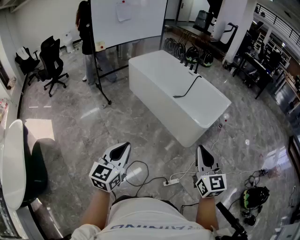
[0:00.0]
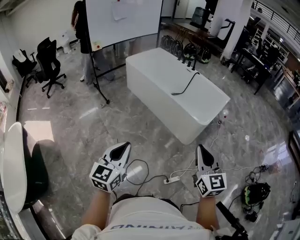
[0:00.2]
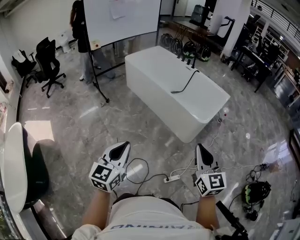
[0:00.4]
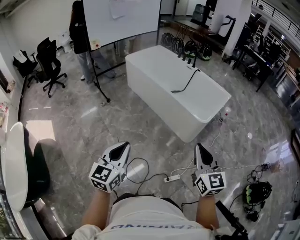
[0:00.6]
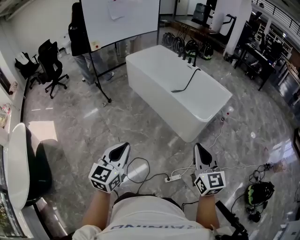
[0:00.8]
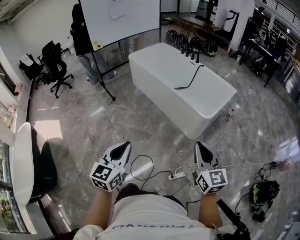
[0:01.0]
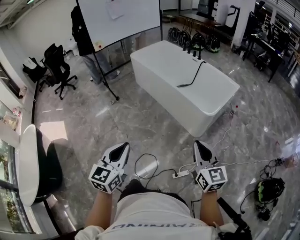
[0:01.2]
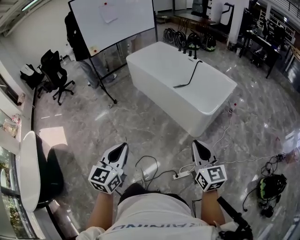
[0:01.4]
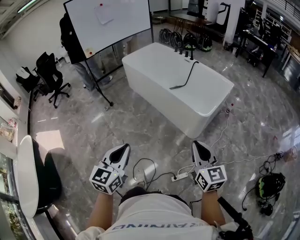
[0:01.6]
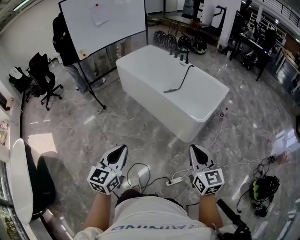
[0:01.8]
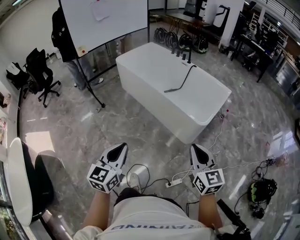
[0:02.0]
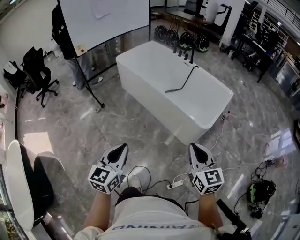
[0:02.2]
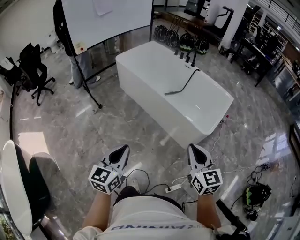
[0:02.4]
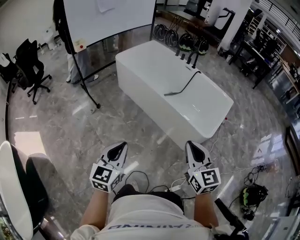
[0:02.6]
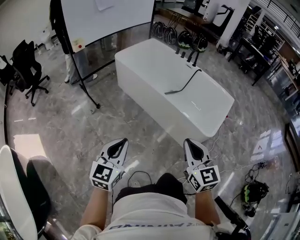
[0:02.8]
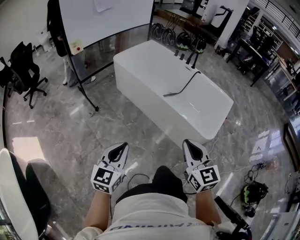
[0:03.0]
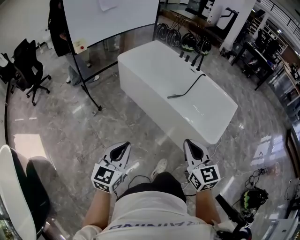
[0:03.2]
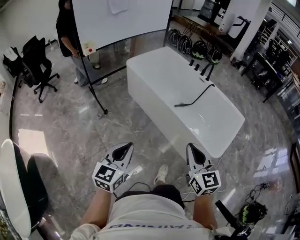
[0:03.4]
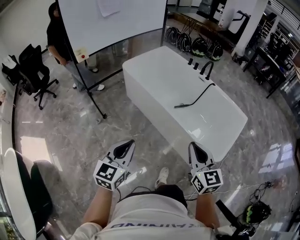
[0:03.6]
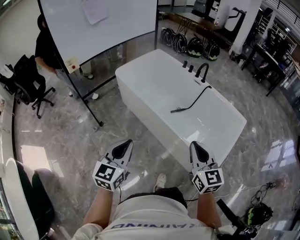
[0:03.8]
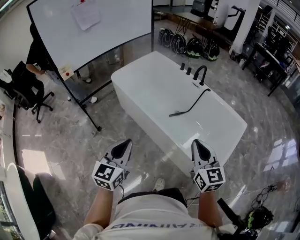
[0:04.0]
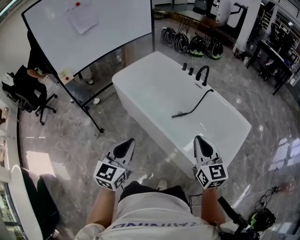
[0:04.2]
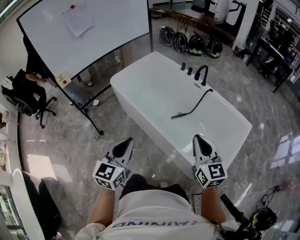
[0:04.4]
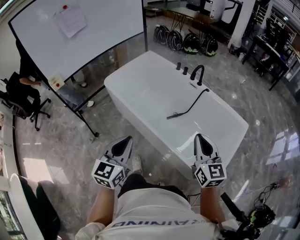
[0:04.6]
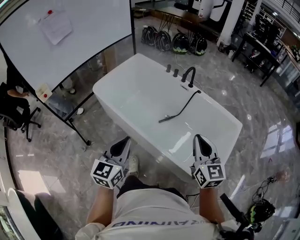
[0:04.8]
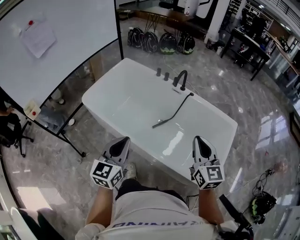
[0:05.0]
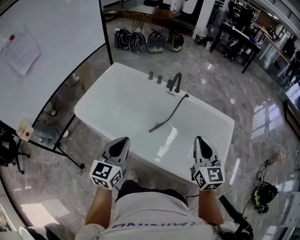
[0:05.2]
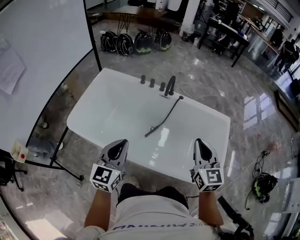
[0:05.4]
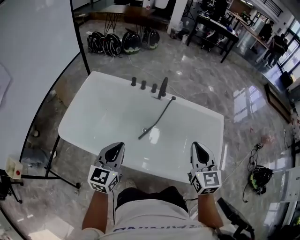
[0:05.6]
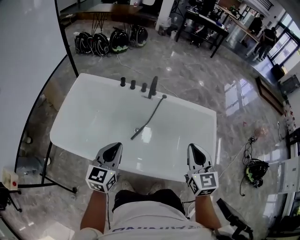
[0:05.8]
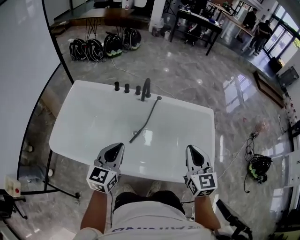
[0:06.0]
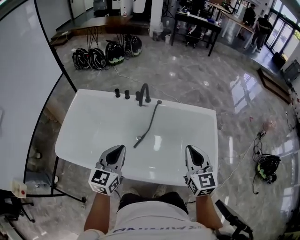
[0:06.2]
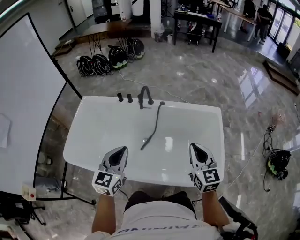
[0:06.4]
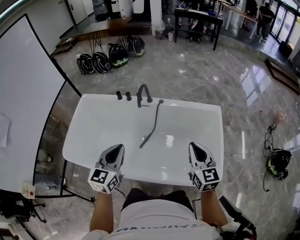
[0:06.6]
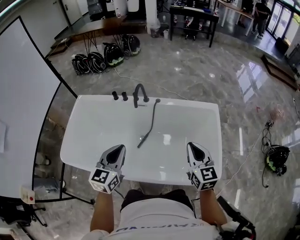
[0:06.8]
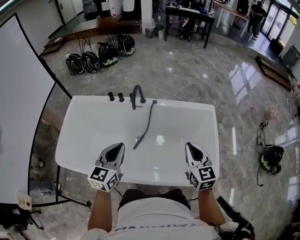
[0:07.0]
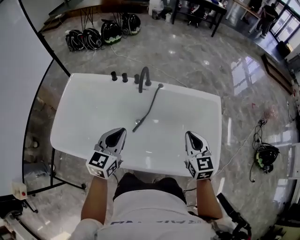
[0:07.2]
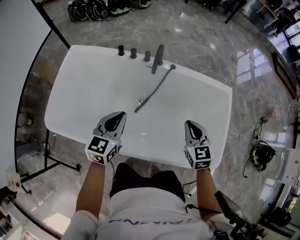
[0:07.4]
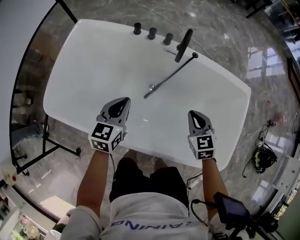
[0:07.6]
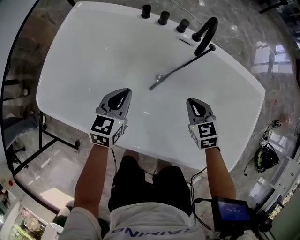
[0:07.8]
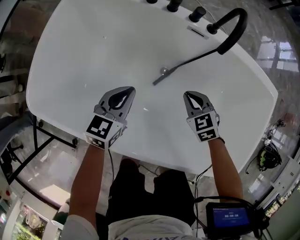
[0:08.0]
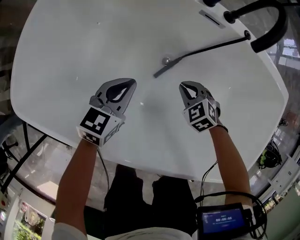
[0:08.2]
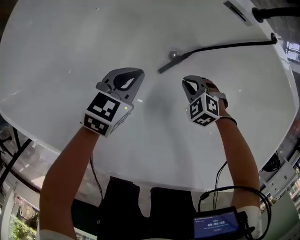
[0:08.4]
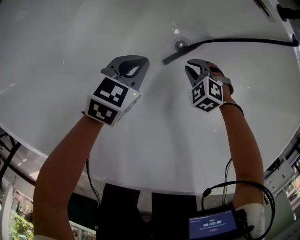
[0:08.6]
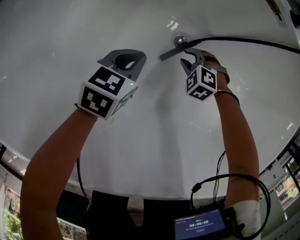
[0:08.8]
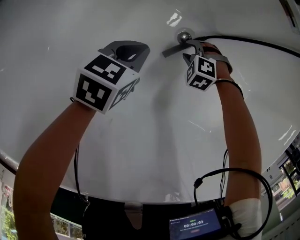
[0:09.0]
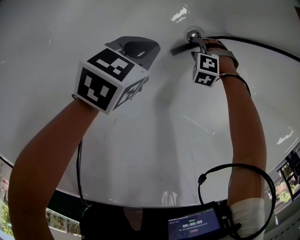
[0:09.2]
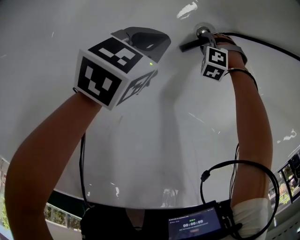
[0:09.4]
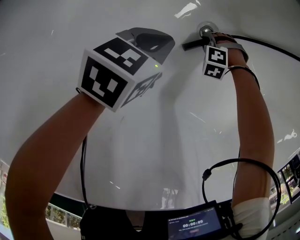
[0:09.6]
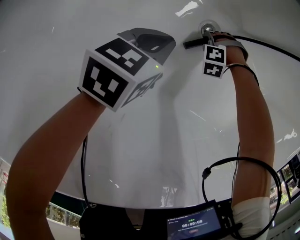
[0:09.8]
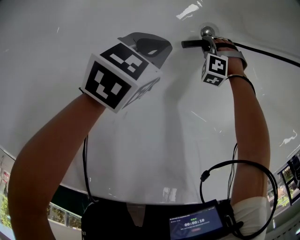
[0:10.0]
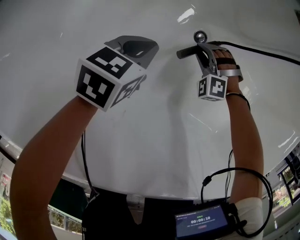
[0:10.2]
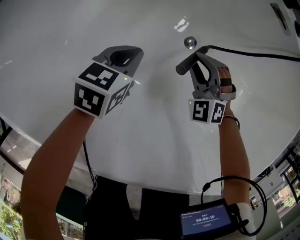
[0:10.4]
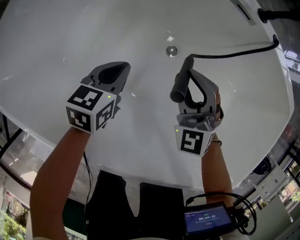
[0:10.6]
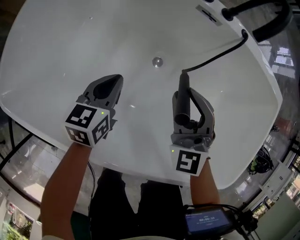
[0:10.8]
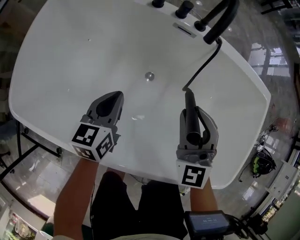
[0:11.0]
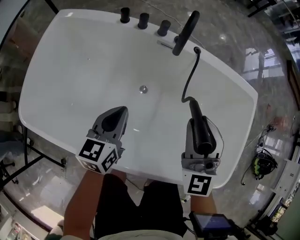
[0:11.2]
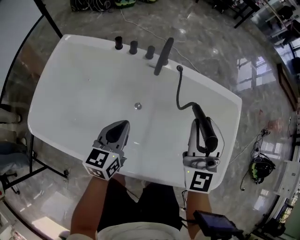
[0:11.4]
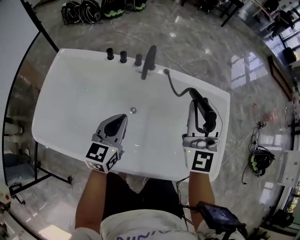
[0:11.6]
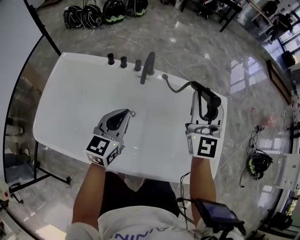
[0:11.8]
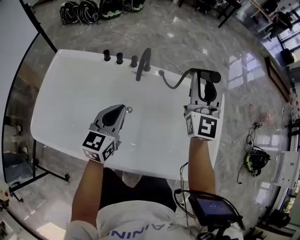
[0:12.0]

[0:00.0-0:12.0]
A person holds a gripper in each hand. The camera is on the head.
0:00.0 to 0:01.6: The left gripper shifts about 10 cm to the right, while the right gripper shifts some 15 cm to the right and downward.
0:01.6 to 0:03.0: The grippers both shift forward and to the left by roughly 40 cm.
0:03.0 to 0:04.4: The two grippers travel together, forward and to the right, approximately 40 cm.
0:04.4 to 0:06.0: The right gripper shifts by approximately 25 cm, and turns by approximately 40 degrees. Meanwhile the left gripper changes place by about 40 cm, and turns by approximately 40 degrees.
0:06.0 to 0:07.6: The right gripper goes roughly 35 cm downward and forward, and turns by about 30 degrees, while the left gripper travels downward, forward and to the left by some 30 cm.
0:07.6 to 0:09.0: The two grippers go about 60 cm downward. The right gripper rotates around the line of its fingers by roughly 60 degrees, counterclockwise from behind, and opens its fingers; the left gripper rotates some 30 degrees.
0:09.0 to 0:10.4: The left gripper changes place by some 10 cm. Meanwhile the right gripper shifts some 20 cm upward, and angles its fingers upward, by about 40 degrees.
0:10.4 to 0:12.0: The grippers both shift upward by approximately 70 cm. The left gripper tilts its fingers approximately 30 degrees upward. The right gripper tilts its fingers some 50 degrees upward.

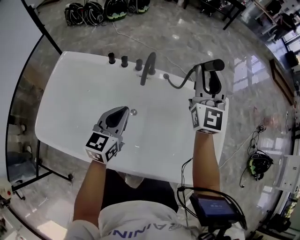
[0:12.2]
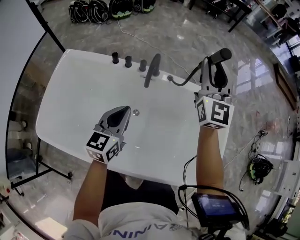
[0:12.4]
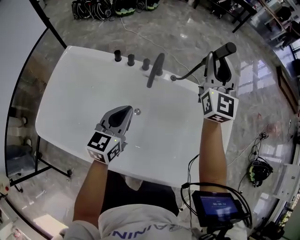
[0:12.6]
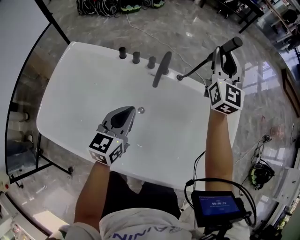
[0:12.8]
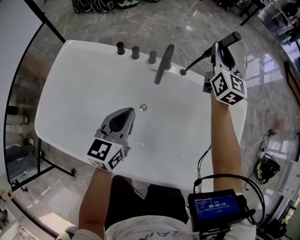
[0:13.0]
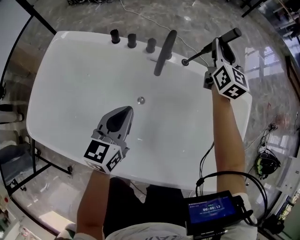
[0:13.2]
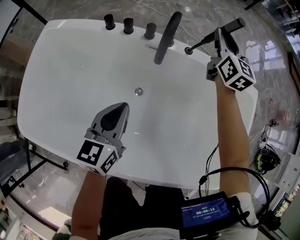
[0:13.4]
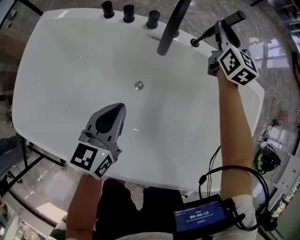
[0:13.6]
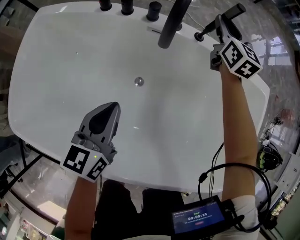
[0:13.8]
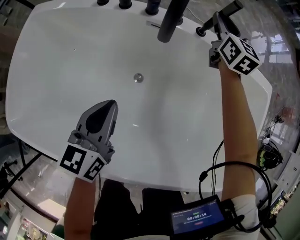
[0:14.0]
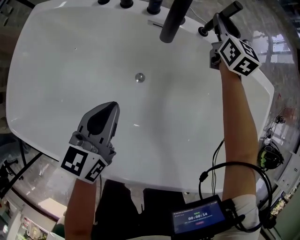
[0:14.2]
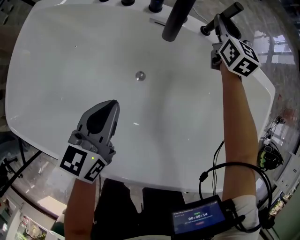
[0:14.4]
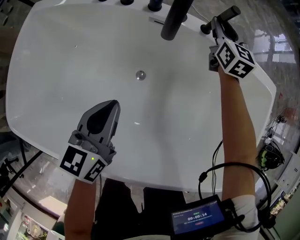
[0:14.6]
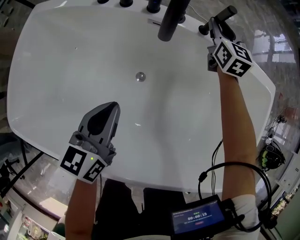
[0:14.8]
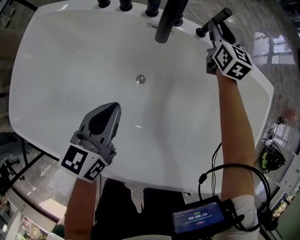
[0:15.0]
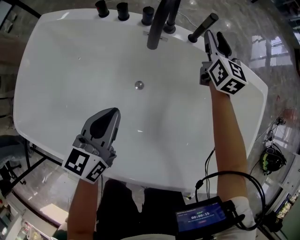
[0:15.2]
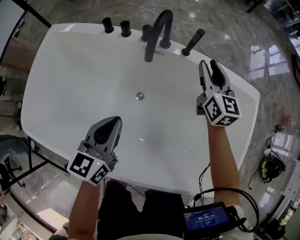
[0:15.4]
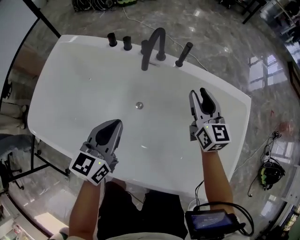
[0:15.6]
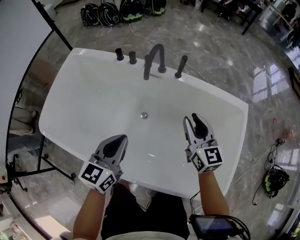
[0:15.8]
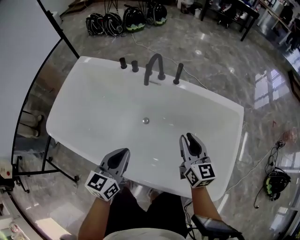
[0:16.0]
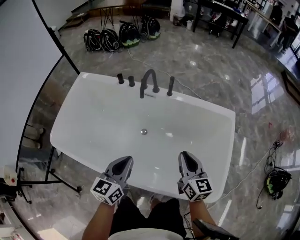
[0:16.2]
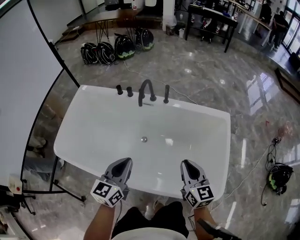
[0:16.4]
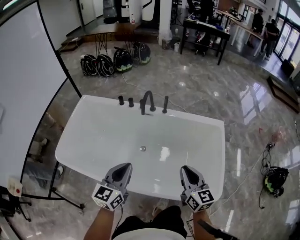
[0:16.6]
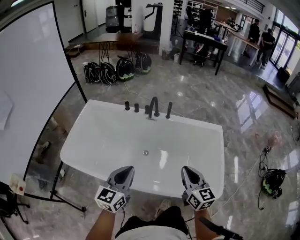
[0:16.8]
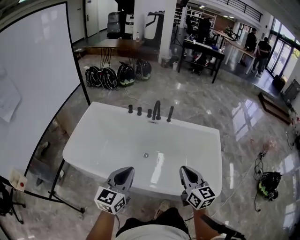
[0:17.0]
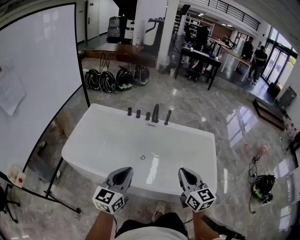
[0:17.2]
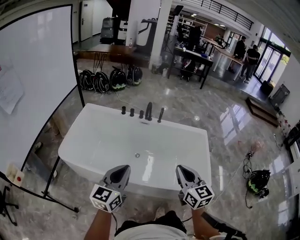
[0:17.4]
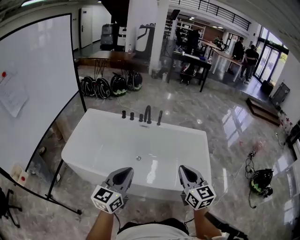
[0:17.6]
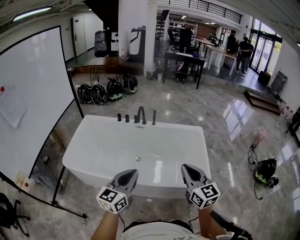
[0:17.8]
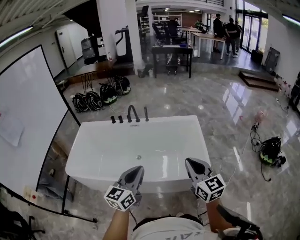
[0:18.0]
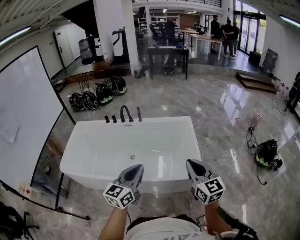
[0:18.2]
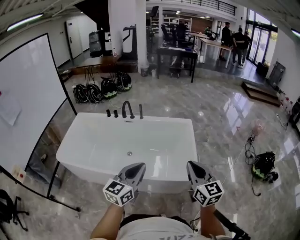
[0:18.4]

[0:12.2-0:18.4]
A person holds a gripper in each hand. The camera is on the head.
0:12.2 to 0:13.8: The left gripper heads downward, covering approximately 25 cm, while the right gripper is displaced downward and forward by about 40 cm, and swivels roughly 30 degrees.
0:13.8 to 0:15.4: The right gripper shifts some 15 cm backward, while the left gripper travels upward by roughly 5 cm.
0:15.4 to 0:16.8: The right gripper heads backward and upward, covering some 60 cm, and closes; the left gripper heads upward and backward, covering approximately 40 cm.
0:16.8 to 0:18.4: The right gripper heads backward, to the right and upward, covering roughly 40 cm. The left gripper moves to the right and backward, about 35 cm.

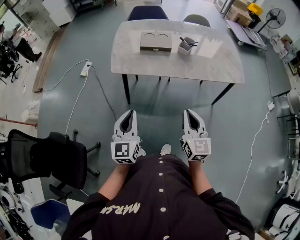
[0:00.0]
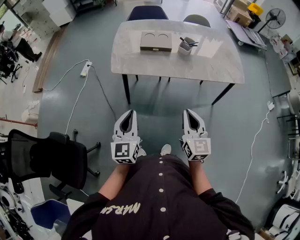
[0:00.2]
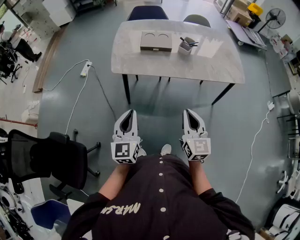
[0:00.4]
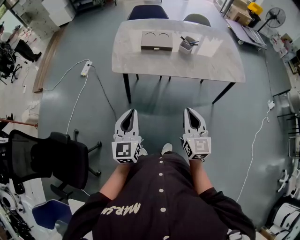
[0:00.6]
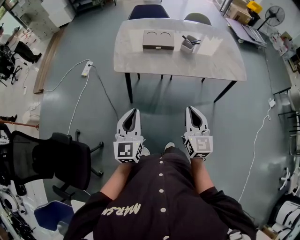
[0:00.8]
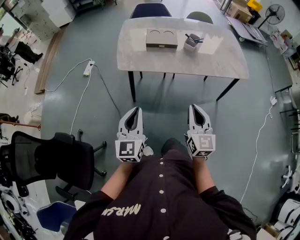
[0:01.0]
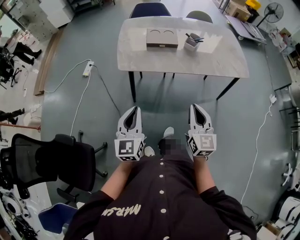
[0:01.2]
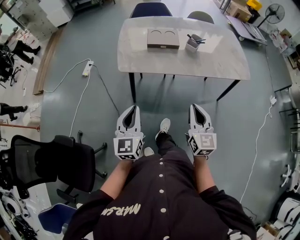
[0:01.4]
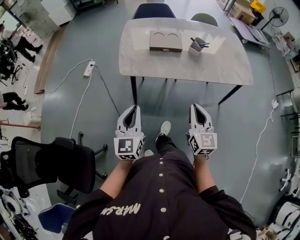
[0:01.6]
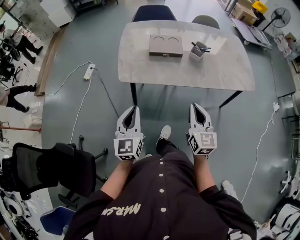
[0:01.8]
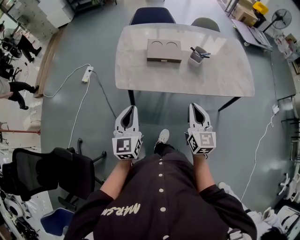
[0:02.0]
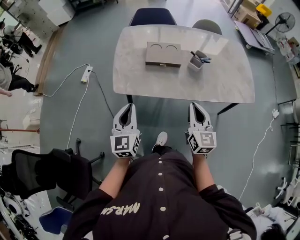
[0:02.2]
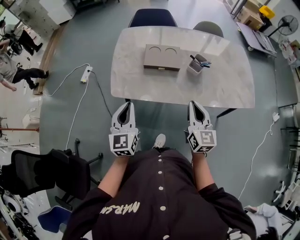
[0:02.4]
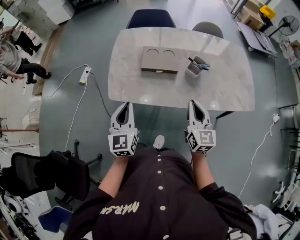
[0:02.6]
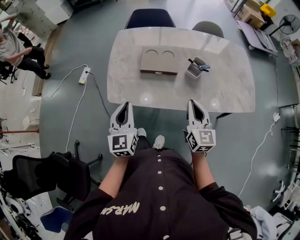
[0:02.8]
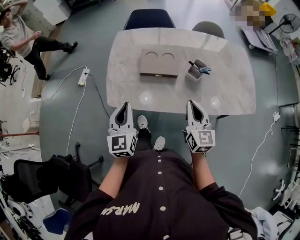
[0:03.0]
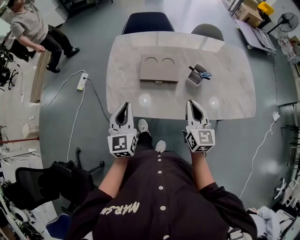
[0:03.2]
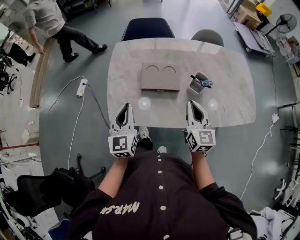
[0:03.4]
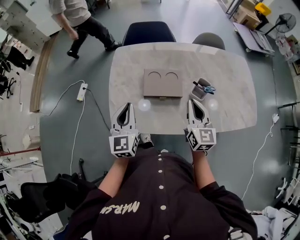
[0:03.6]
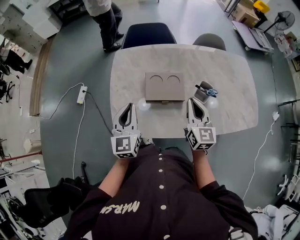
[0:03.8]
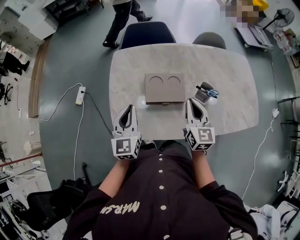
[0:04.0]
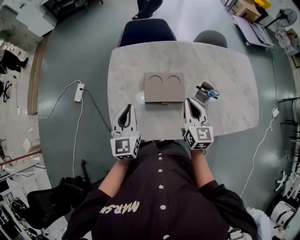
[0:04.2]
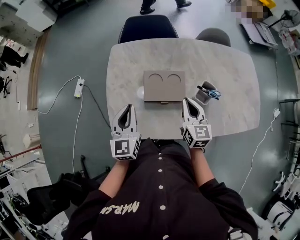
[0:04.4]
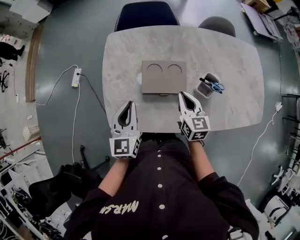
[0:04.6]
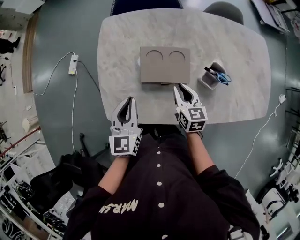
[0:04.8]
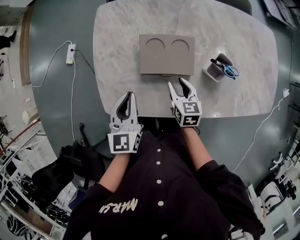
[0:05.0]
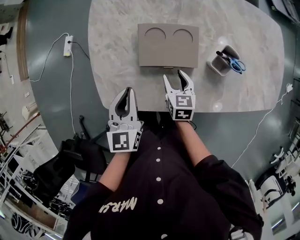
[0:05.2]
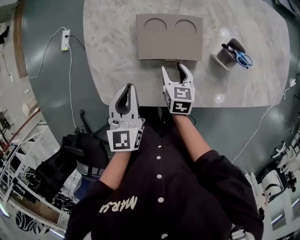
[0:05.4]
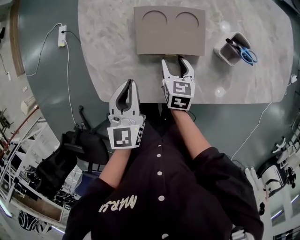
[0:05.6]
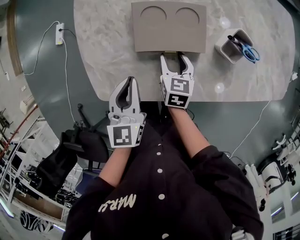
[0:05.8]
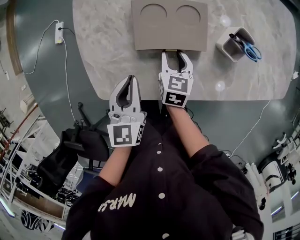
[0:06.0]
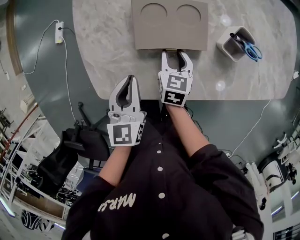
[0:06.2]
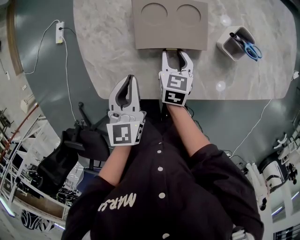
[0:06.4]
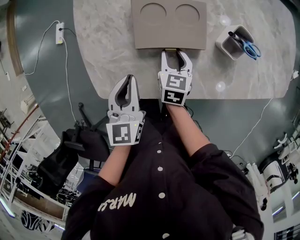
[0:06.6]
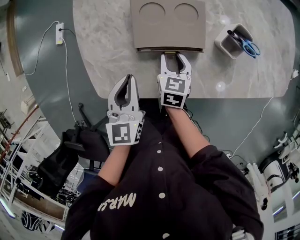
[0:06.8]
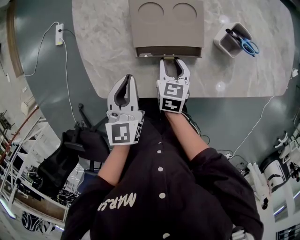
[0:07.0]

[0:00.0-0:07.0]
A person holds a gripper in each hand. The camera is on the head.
0:00.0 to 0:01.4: The right gripper moves some 5 cm. Meanwhile the left gripper travels to the left by some 5 cm.
0:01.4 to 0:02.8: Both grippers move forward, roughly 30 cm.
0:02.8 to 0:04.2: Both grippers travel together forward, about 20 cm.
0:04.2 to 0:05.6: The right gripper is displaced downward by roughly 25 cm, tips its fingers downward by approximately 30 degrees, and opens its fingers. The left gripper travels downward by some 15 cm.
0:05.6 to 0:07.0: The grippers make only small movements.
